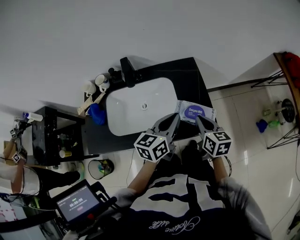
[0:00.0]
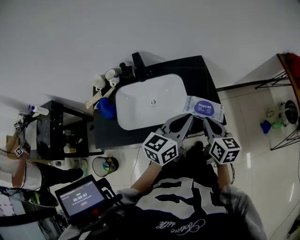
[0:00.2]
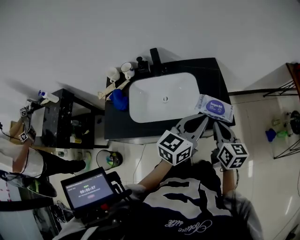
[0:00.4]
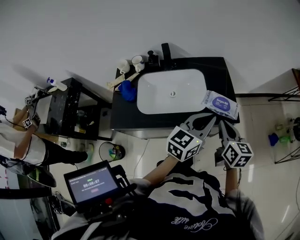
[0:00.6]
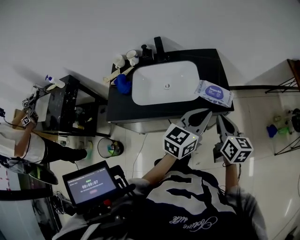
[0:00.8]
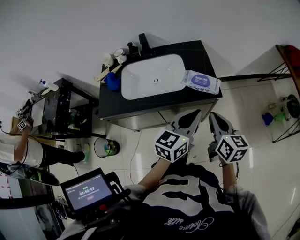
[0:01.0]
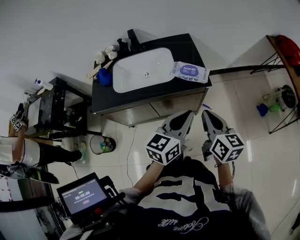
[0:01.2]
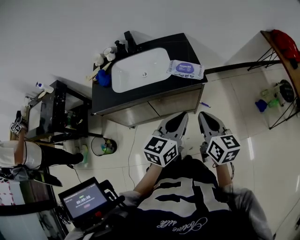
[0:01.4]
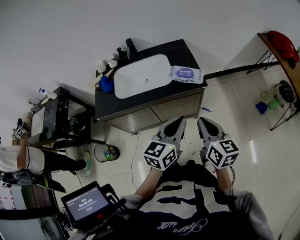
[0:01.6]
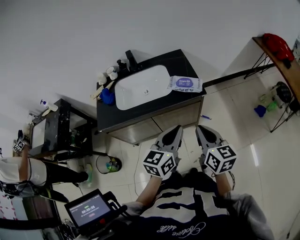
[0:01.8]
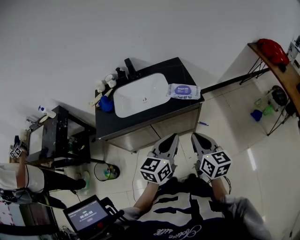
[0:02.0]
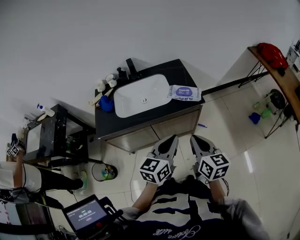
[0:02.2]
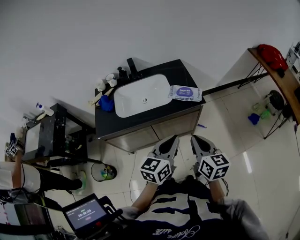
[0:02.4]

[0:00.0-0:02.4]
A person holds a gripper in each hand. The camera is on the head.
0:00.0 to 0:01.2: The right gripper shifts some 25 cm backward. The left gripper is displaced backward and to the right by about 25 cm.
0:01.2 to 0:02.4: The left gripper travels to the left and backward by roughly 10 cm, while the right gripper heads backward and to the left, covering roughly 10 cm.

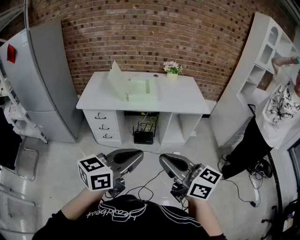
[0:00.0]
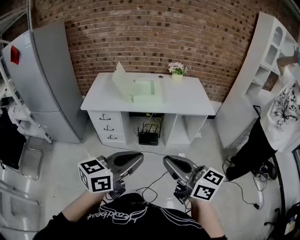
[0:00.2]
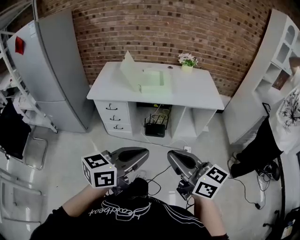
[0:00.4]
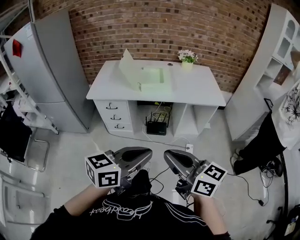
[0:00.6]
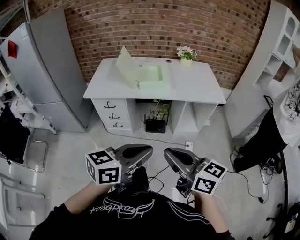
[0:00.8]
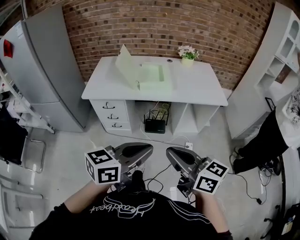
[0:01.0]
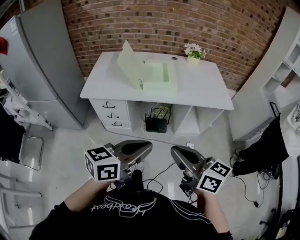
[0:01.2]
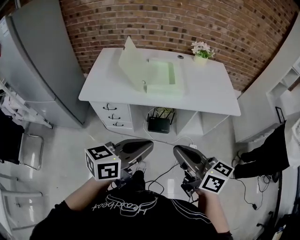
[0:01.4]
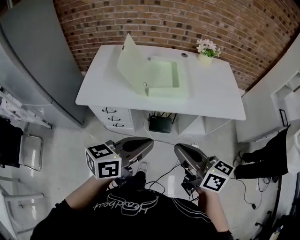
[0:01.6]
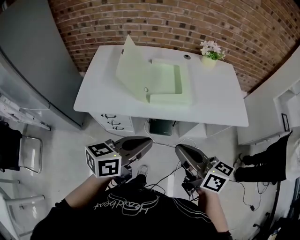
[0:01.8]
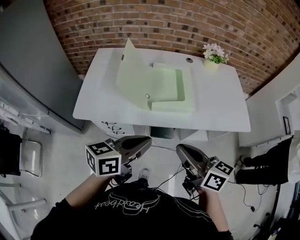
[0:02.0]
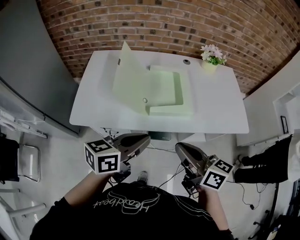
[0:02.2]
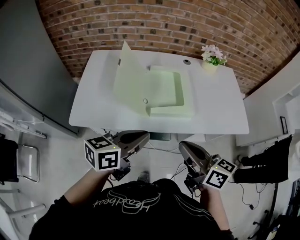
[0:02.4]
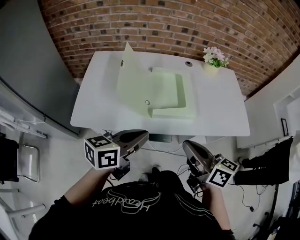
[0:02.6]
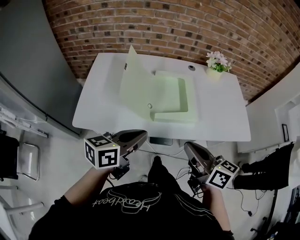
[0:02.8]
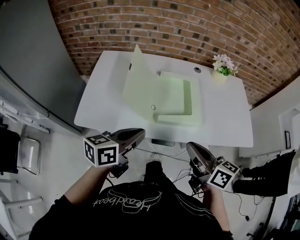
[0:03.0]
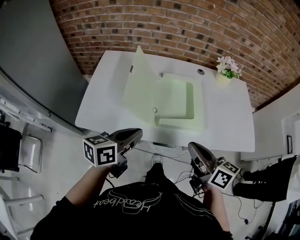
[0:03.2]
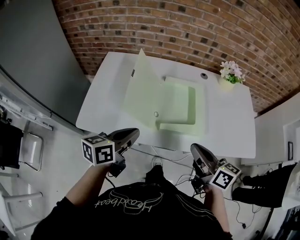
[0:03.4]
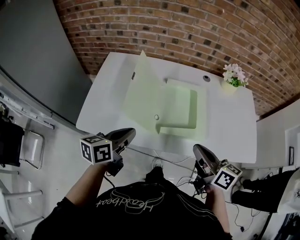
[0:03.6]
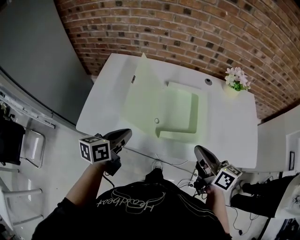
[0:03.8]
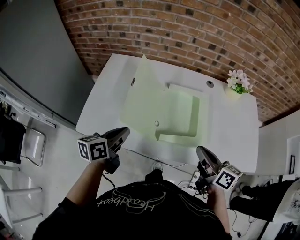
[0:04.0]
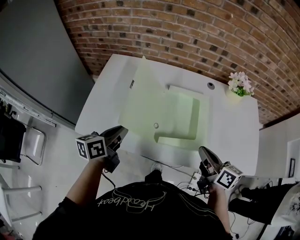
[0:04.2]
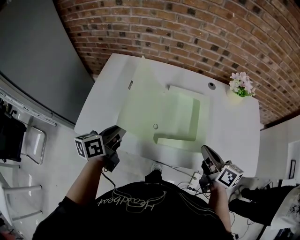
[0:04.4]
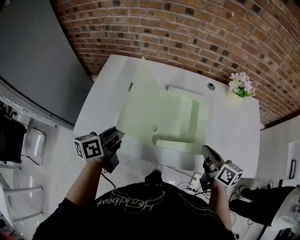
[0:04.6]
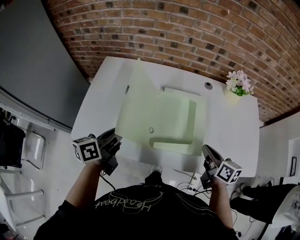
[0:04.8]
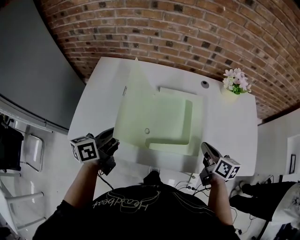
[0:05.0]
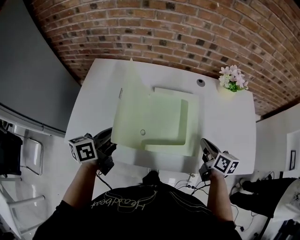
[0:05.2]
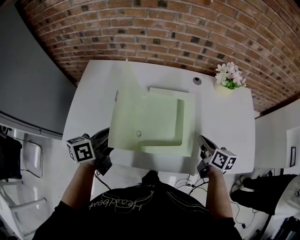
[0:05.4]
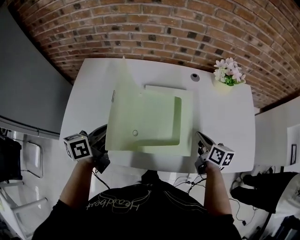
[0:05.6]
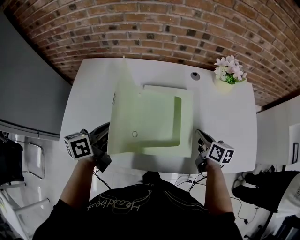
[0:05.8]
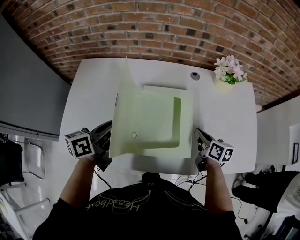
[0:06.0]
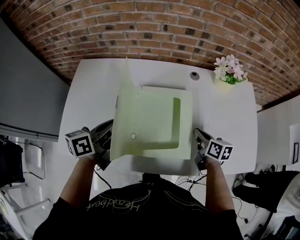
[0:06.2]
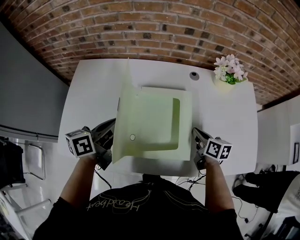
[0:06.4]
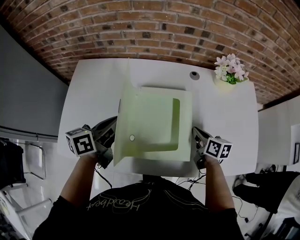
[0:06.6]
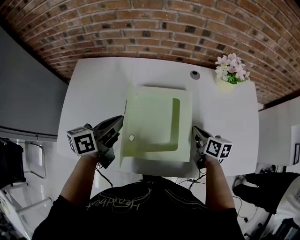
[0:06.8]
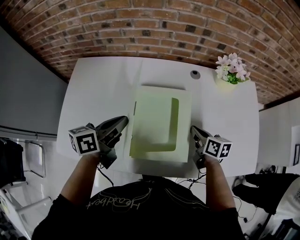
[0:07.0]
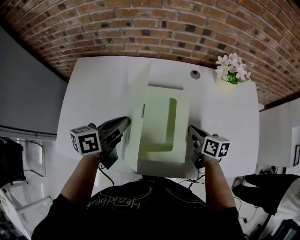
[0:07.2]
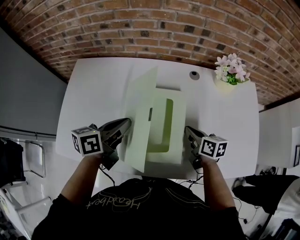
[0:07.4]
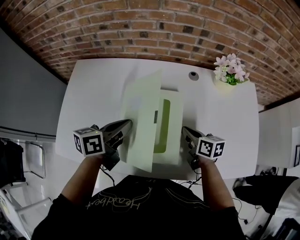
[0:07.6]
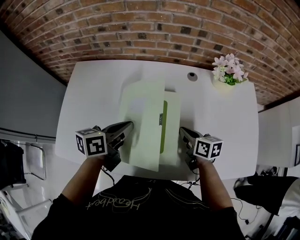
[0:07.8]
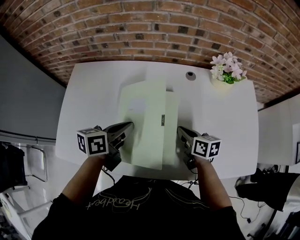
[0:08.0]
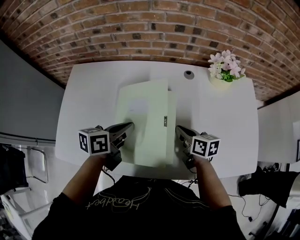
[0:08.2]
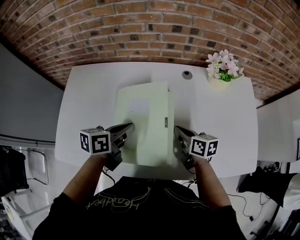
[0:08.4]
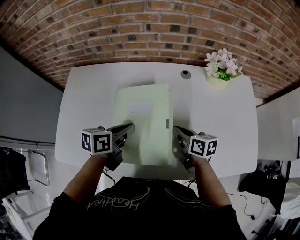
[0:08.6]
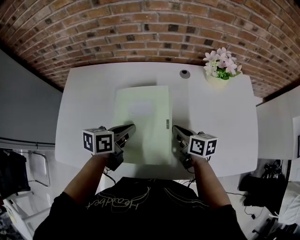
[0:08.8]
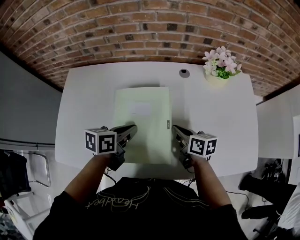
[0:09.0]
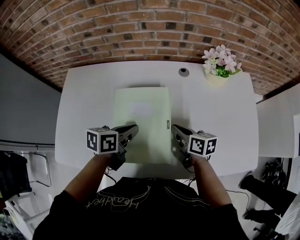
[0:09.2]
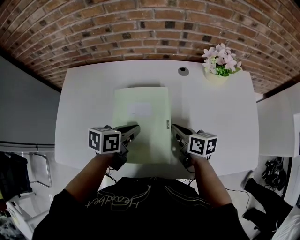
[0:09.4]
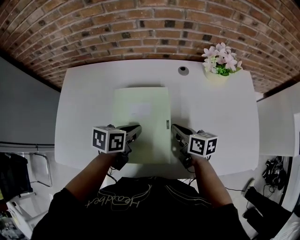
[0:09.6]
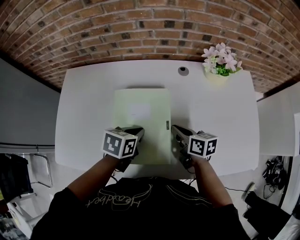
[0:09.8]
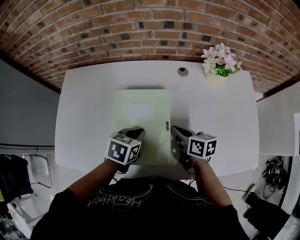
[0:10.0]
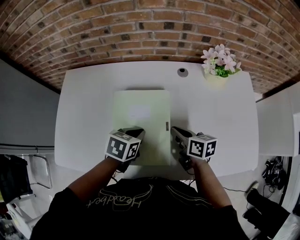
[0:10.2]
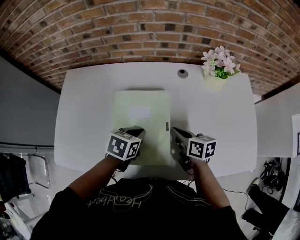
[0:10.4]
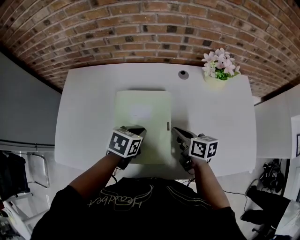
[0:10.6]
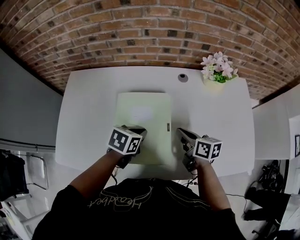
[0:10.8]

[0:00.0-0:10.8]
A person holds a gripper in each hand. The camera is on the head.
0:00.0 to 0:01.6: Both grippers move forward, some 30 cm.
0:01.6 to 0:03.0: The left gripper shifts approximately 20 cm forward and to the left. Meanwhile the right gripper goes about 20 cm forward.
0:03.0 to 0:04.6: The right gripper travels forward, to the right and downward by about 20 cm; the left gripper goes approximately 15 cm forward and to the left, and swivels roughly 20 degrees.
0:04.6 to 0:06.2: The left gripper shifts roughly 10 cm forward and to the right, while the right gripper travels downward, forward and to the right by approximately 15 cm.
0:06.2 to 0:07.8: The left gripper goes approximately 5 cm to the right, while the right gripper shifts approximately 5 cm to the left.
0:07.8 to 0:09.2: The left gripper travels downward by approximately 5 cm.
0:09.2 to 0:10.8: The left gripper rotates about 30 degrees.

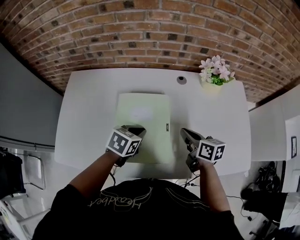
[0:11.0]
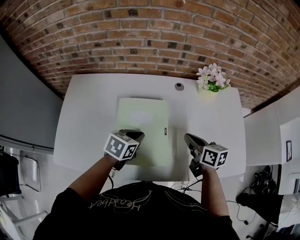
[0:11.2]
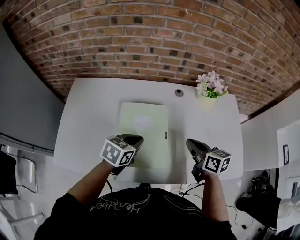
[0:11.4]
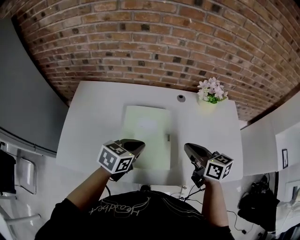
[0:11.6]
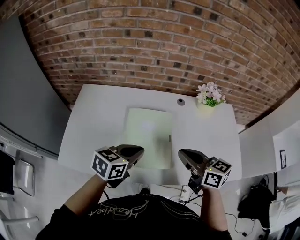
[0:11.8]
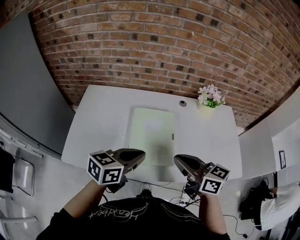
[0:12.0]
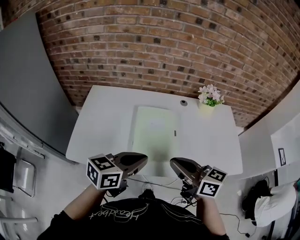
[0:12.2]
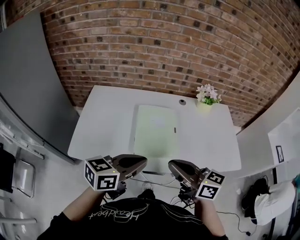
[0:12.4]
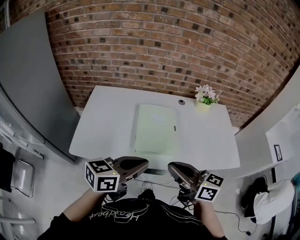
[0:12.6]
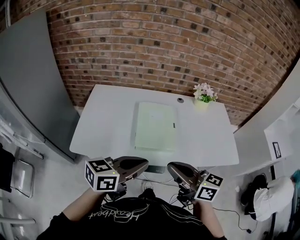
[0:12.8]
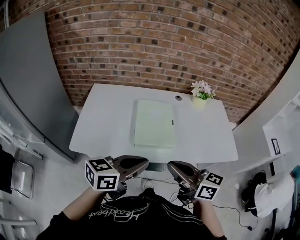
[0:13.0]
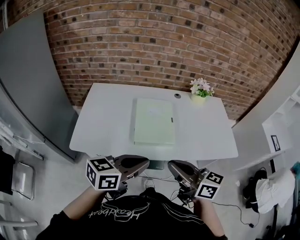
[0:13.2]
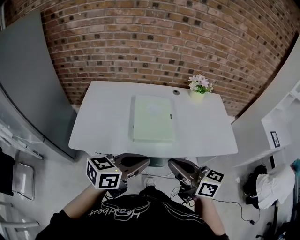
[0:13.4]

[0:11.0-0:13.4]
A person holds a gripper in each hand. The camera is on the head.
0:11.0 to 0:12.2: The right gripper goes approximately 30 cm upward, backward and to the left, and turns by some 30 degrees. The left gripper shifts some 25 cm upward and backward, and tilts its fingers approximately 30 degrees upward.
0:12.2 to 0:13.4: Both grippers travel together backward, approximately 10 cm.

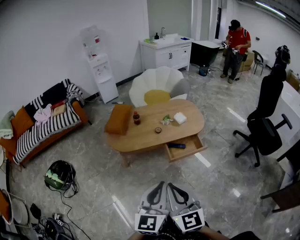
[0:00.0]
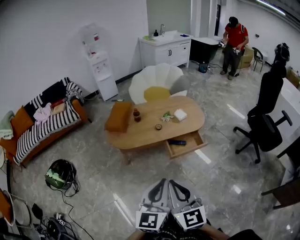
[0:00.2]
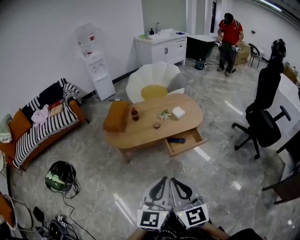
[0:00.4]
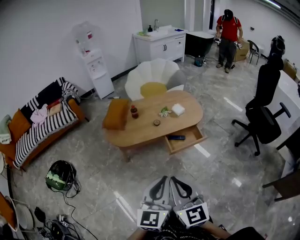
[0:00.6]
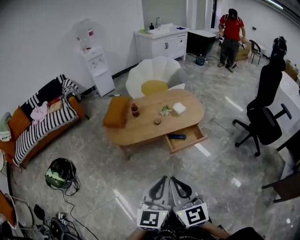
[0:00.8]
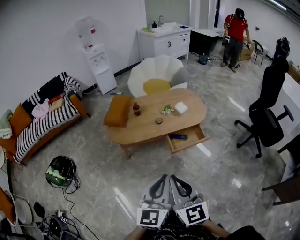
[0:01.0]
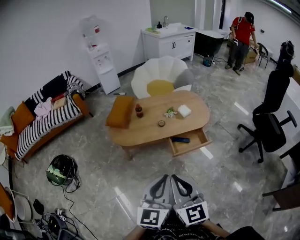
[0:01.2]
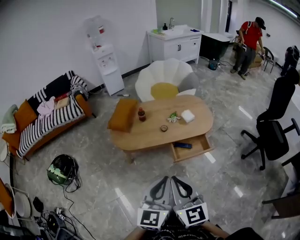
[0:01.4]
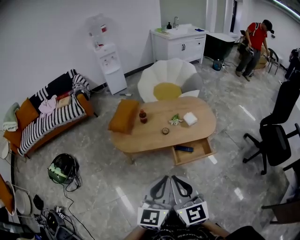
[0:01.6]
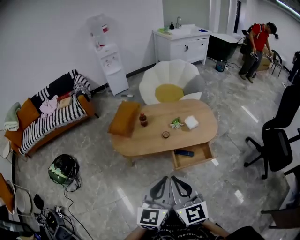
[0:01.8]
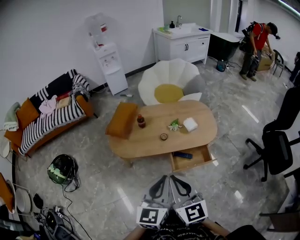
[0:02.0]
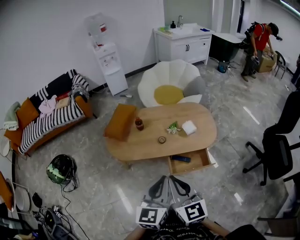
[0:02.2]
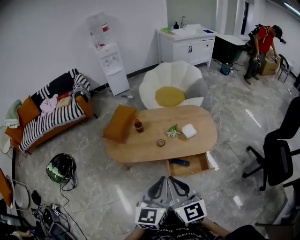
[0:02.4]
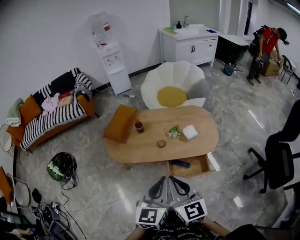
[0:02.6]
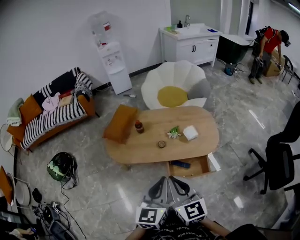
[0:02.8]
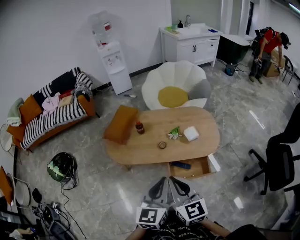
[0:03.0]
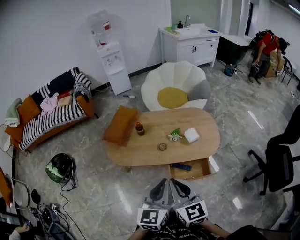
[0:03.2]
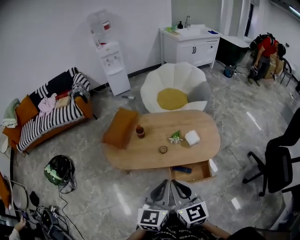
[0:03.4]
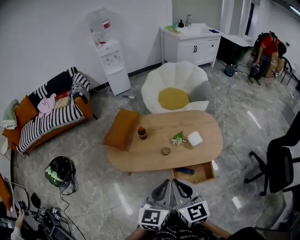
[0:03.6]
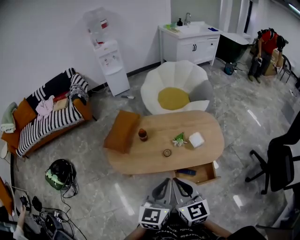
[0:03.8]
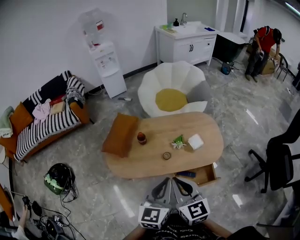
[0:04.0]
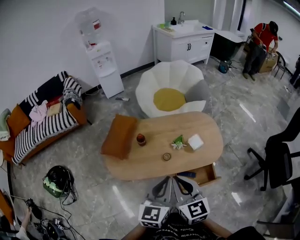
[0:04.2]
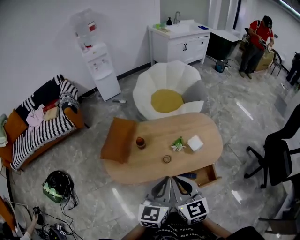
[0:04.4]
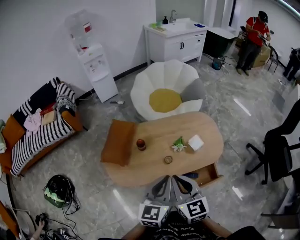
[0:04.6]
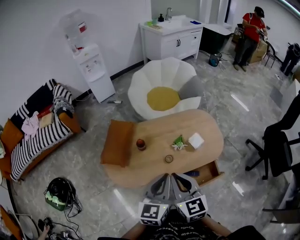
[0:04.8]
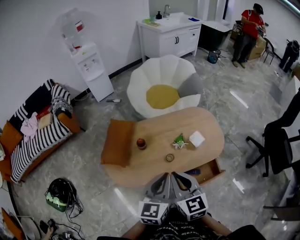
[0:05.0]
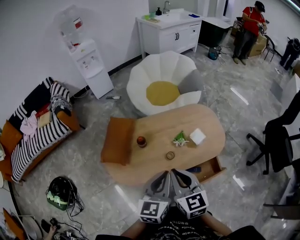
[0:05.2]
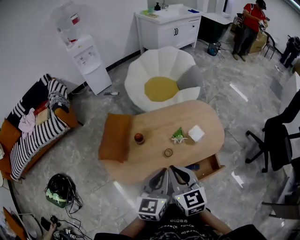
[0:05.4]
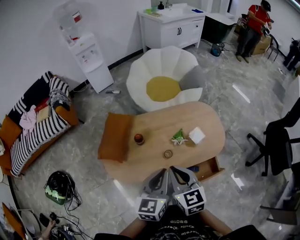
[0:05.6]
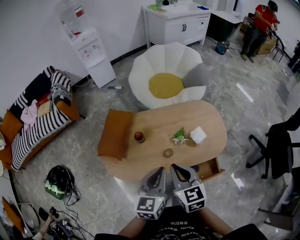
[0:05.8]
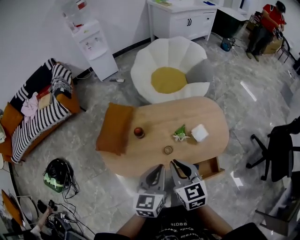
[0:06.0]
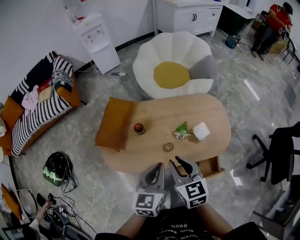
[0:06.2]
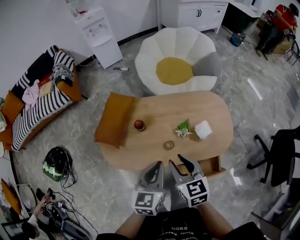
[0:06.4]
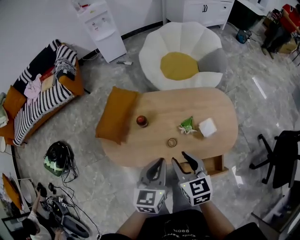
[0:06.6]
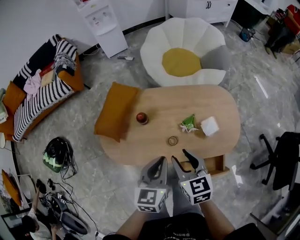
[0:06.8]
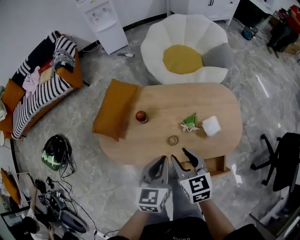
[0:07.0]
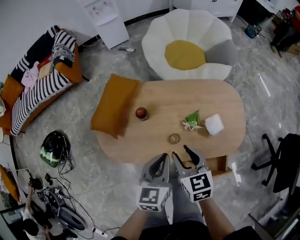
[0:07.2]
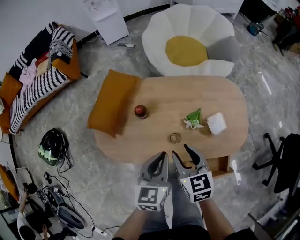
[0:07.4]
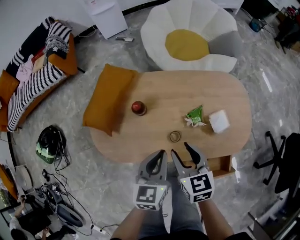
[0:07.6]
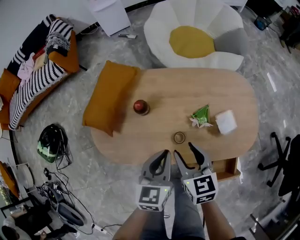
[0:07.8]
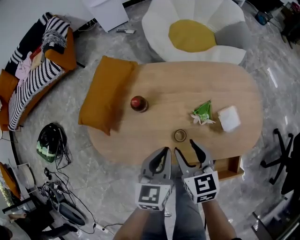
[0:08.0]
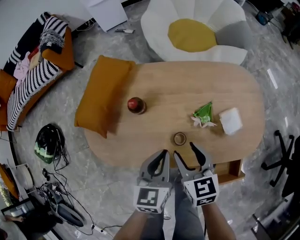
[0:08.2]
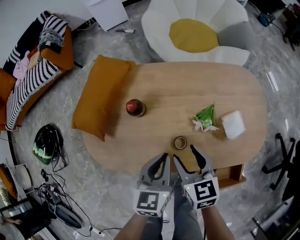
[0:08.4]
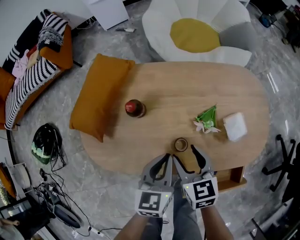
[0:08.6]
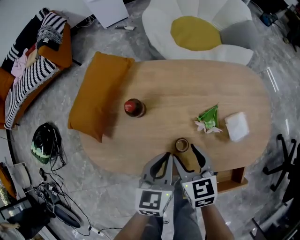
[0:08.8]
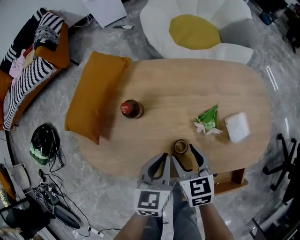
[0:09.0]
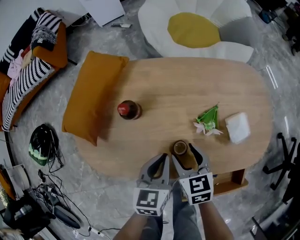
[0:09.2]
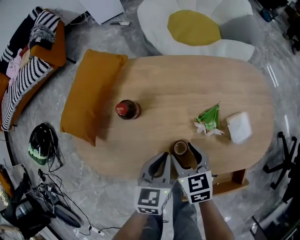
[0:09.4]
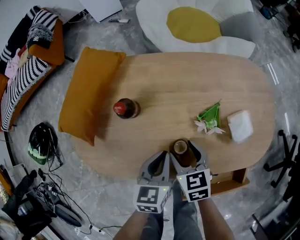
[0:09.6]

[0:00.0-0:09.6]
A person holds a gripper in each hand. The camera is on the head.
0:00.0 to 0:01.6: Both grippers move forward, about 10 cm.
0:01.6 to 0:03.2: Both grippers travel together forward and to the right, some 15 cm.
0:03.2 to 0:04.8: Both grippers travel together forward and to the left, about 20 cm.
0:04.8 to 0:06.4: Both grippers move downward and forward, approximately 10 cm. The right gripper opens.
0:06.4 to 0:08.0: The grippers both shift downward by some 20 cm.
0:08.0 to 0:09.6: Both grippers travel together downward, approximately 15 cm.
